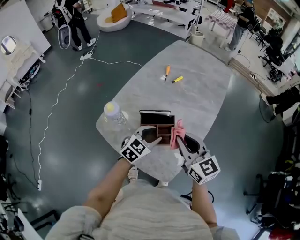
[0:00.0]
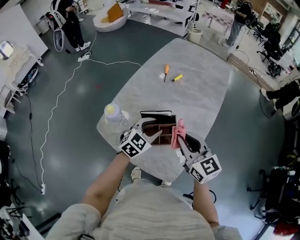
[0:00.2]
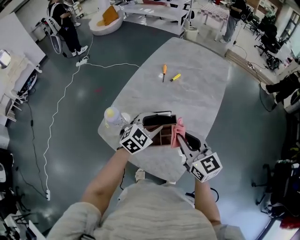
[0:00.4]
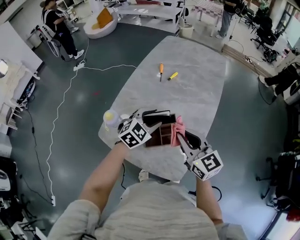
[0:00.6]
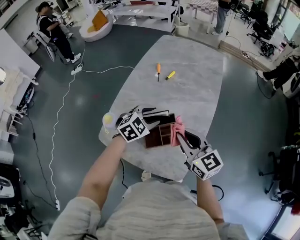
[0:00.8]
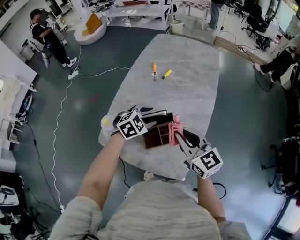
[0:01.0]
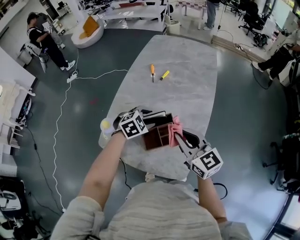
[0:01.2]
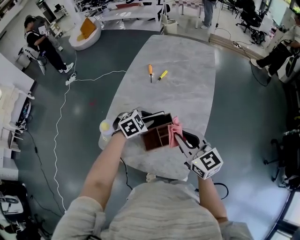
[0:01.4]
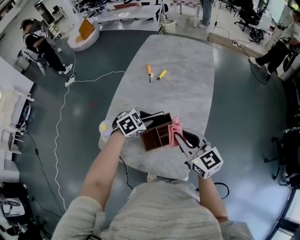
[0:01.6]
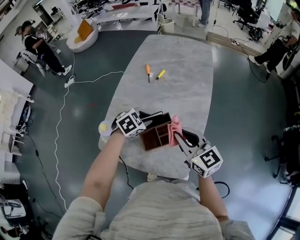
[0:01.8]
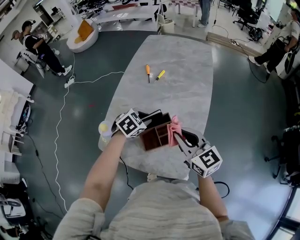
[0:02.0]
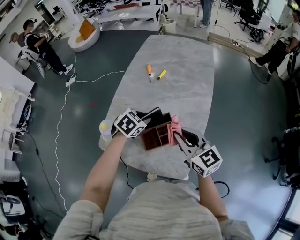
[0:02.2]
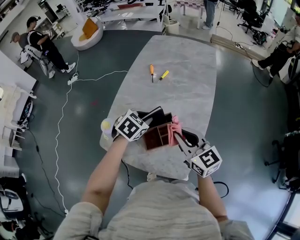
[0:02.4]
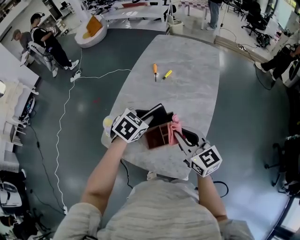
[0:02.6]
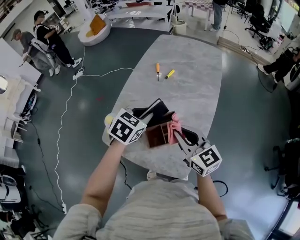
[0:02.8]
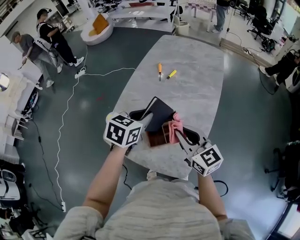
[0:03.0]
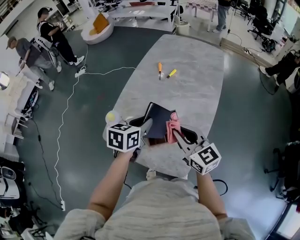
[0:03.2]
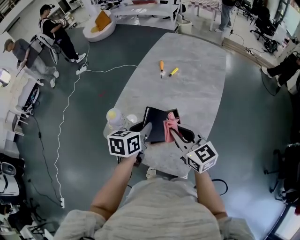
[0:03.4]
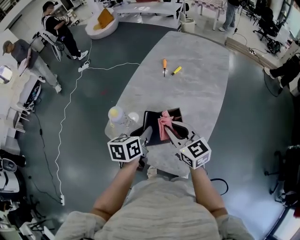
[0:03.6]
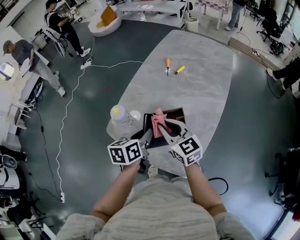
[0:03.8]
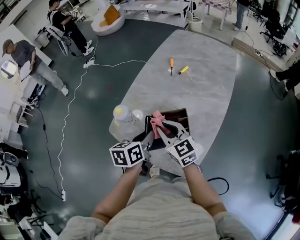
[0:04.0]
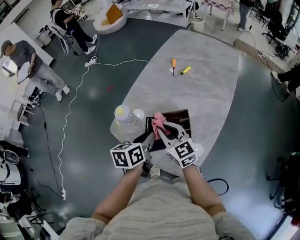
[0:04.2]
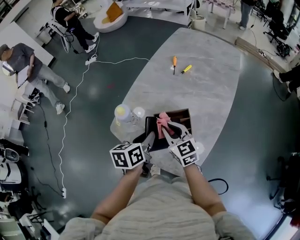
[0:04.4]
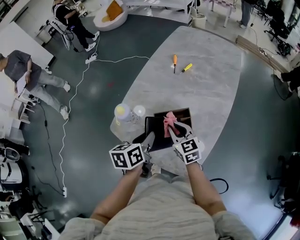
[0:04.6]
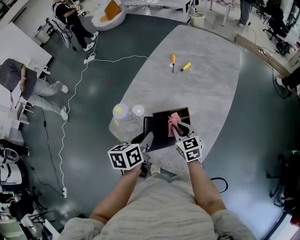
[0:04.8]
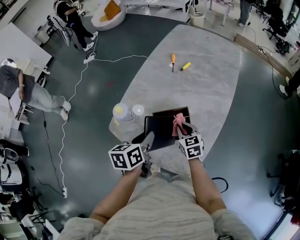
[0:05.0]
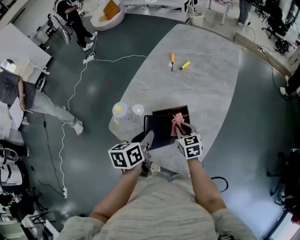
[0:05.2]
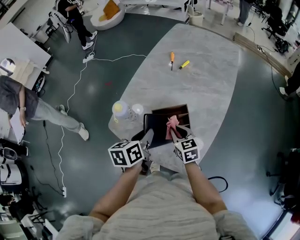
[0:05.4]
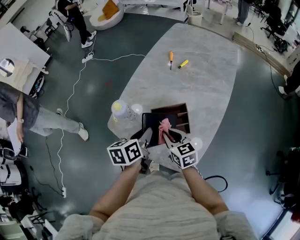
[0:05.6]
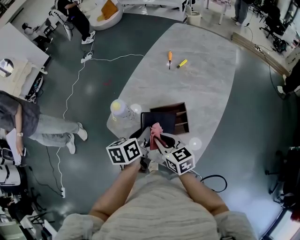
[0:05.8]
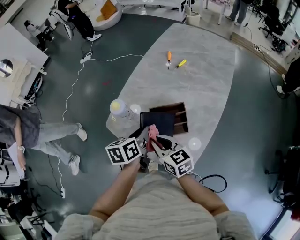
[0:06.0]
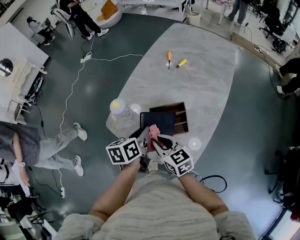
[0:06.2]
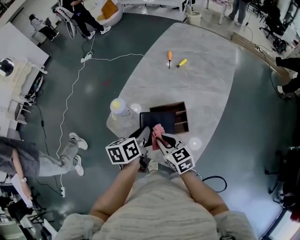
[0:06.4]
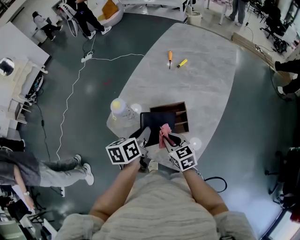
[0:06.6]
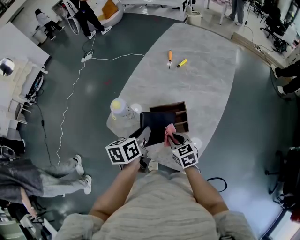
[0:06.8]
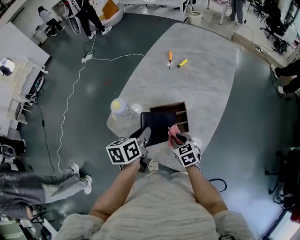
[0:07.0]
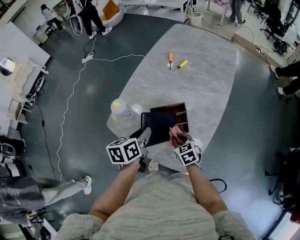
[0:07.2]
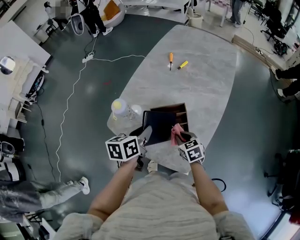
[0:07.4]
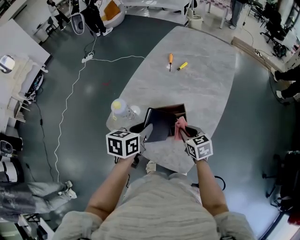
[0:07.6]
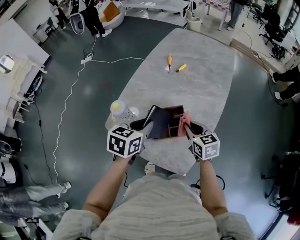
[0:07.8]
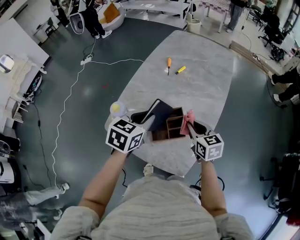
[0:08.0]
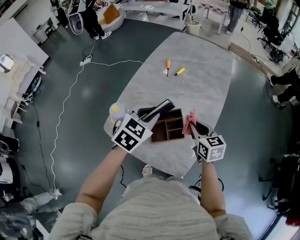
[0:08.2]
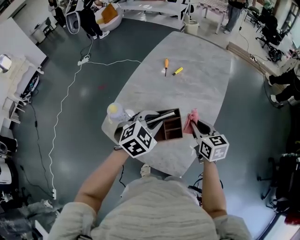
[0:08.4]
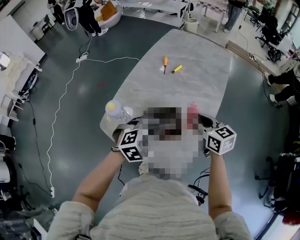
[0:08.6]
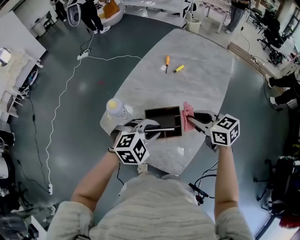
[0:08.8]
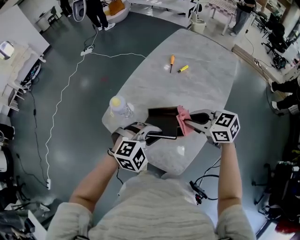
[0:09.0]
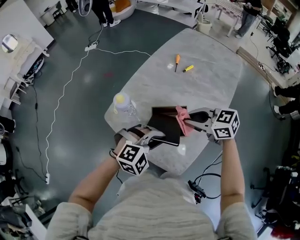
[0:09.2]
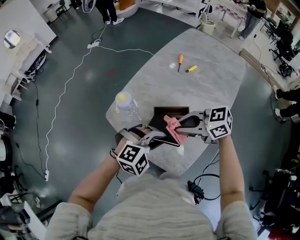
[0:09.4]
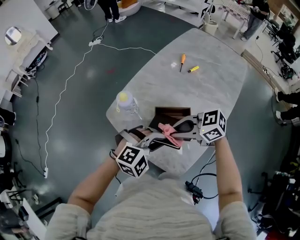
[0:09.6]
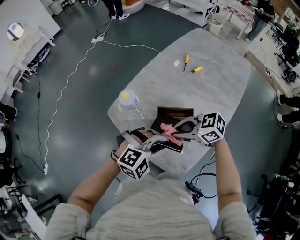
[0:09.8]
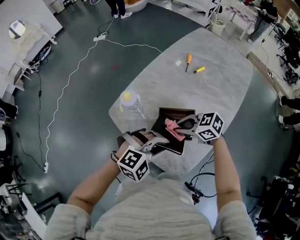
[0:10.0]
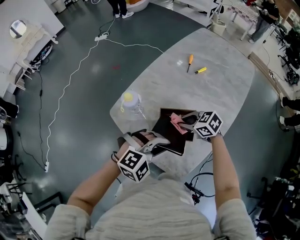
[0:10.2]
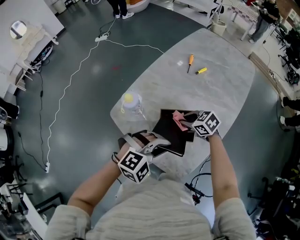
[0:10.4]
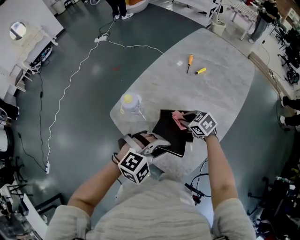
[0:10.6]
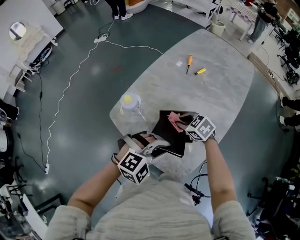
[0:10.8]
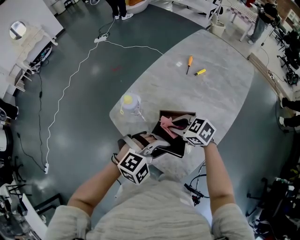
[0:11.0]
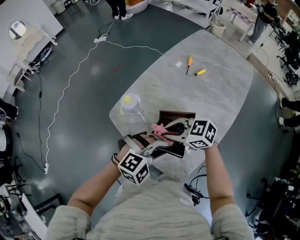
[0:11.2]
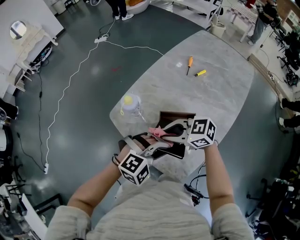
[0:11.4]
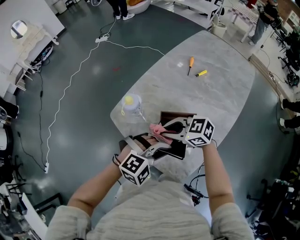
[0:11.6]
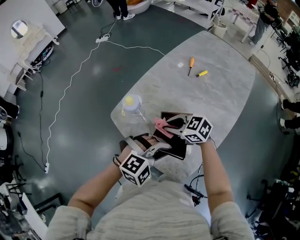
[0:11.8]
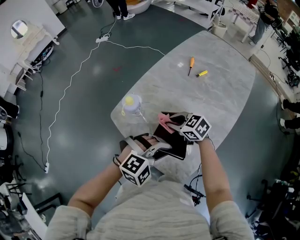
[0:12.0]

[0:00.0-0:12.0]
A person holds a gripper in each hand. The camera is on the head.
0.0 to 1.6 s: The left gripper moves forward, roughly 10 cm, rotates approximately 40 degrees, and closes up.
1.6 to 3.0 s: The left gripper shifts about 15 cm upward, and changes its angle by about 40 degrees.
3.0 to 4.4 s: The right gripper travels to the left and downward by roughly 15 cm. The left gripper heads downward, backward and to the left, covering approximately 10 cm, and changes its angle by some 40 degrees.
4.4 to 6.0 s: The right gripper moves backward, some 10 cm, and moves about 5 cm to the right and comes back.
6.0 to 7.6 s: The right gripper moves to the right and downward, about 15 cm, and turns by about 20 degrees.
7.6 to 9.0 s: The right gripper is displaced upward by approximately 15 cm, and turns by approximately 30 degrees. Meanwhile the left gripper moves to the right and backward, approximately 10 cm, and twists about 80 degrees clockwise, seen from behind.
9.0 to 10.4 s: The right gripper goes roughly 15 cm downward.
10.4 to 12.0 s: The right gripper goes upward and returns, approximately 10 cm each way.

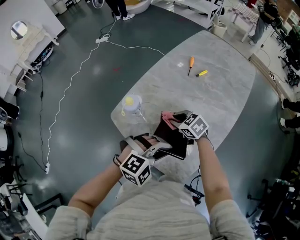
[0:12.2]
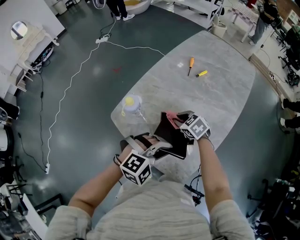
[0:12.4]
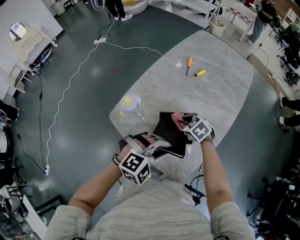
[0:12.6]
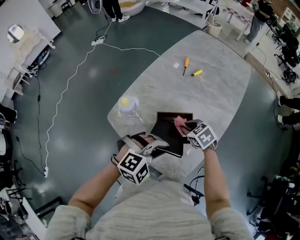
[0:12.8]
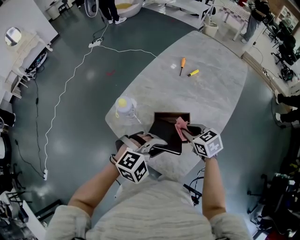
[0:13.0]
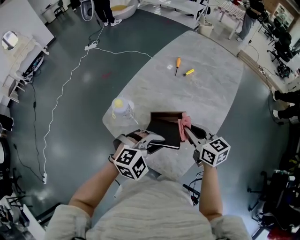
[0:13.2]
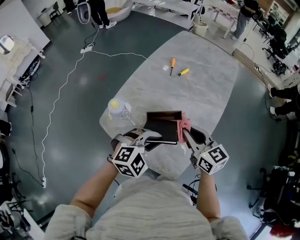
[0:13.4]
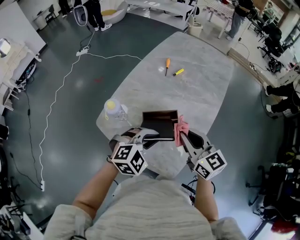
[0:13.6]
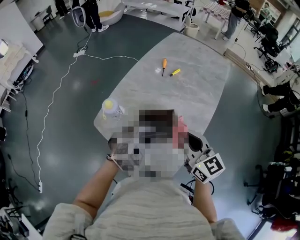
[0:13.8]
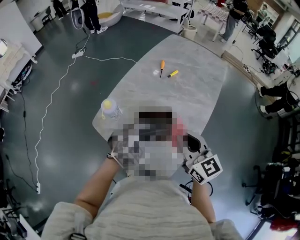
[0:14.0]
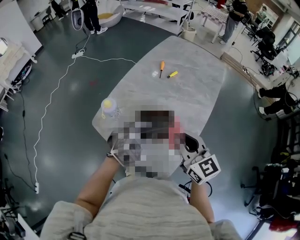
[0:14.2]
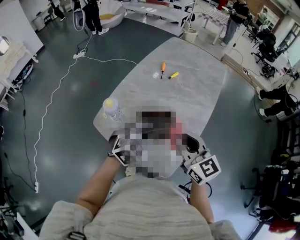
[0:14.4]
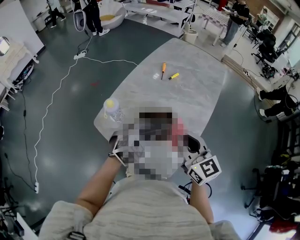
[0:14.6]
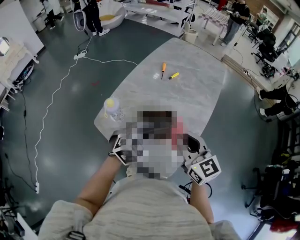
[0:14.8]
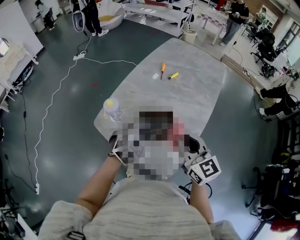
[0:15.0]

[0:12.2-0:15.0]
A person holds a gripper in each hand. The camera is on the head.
12.2 to 13.6 s: The right gripper moves upward, roughly 15 cm, and tips its fingers upward by about 40 degrees.
13.6 to 15.0 s: The right gripper ends up approximately 5 cm from where it was.

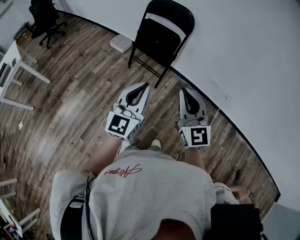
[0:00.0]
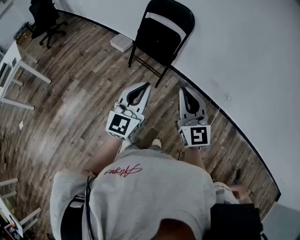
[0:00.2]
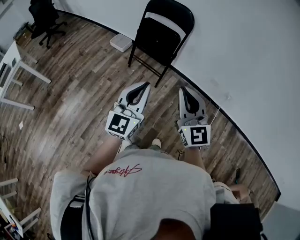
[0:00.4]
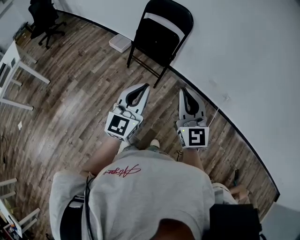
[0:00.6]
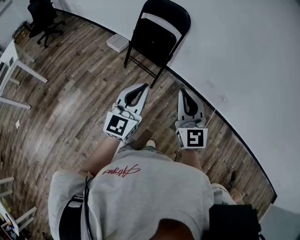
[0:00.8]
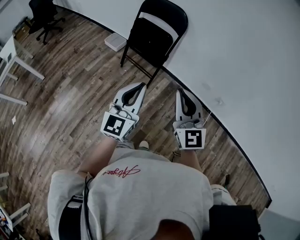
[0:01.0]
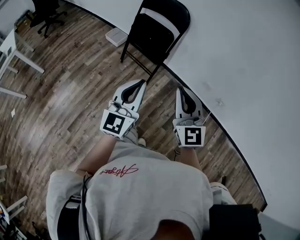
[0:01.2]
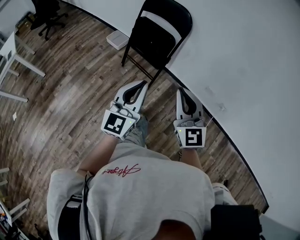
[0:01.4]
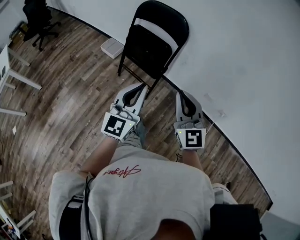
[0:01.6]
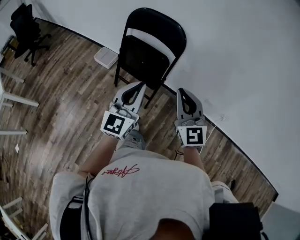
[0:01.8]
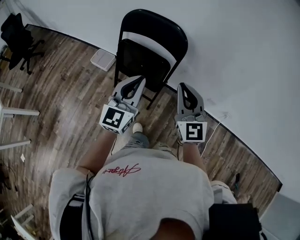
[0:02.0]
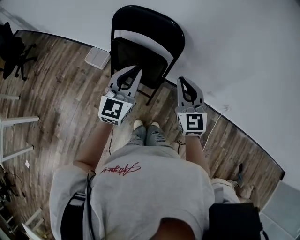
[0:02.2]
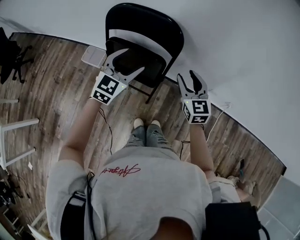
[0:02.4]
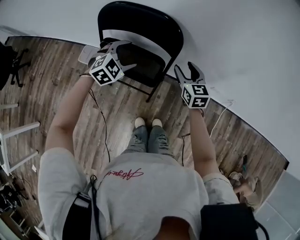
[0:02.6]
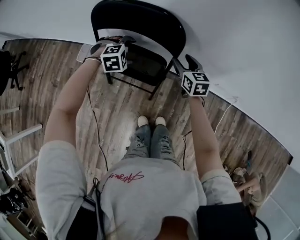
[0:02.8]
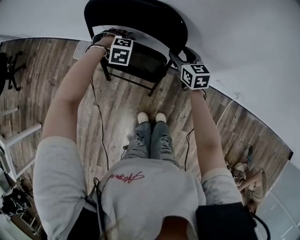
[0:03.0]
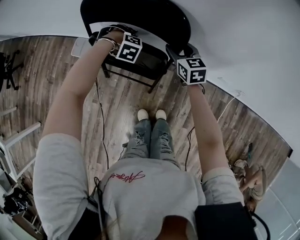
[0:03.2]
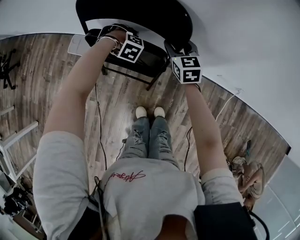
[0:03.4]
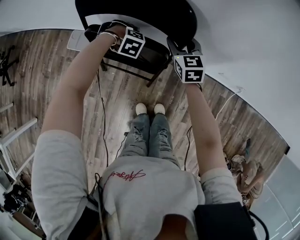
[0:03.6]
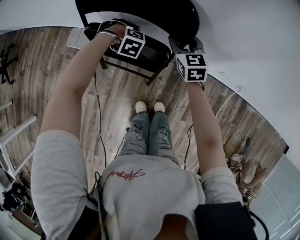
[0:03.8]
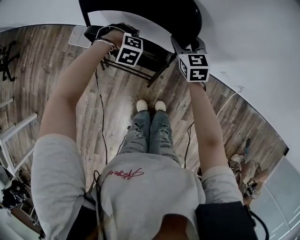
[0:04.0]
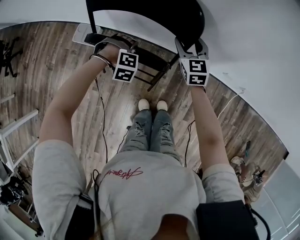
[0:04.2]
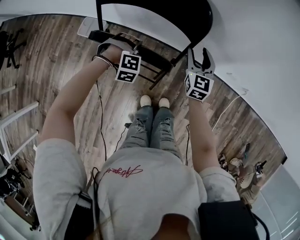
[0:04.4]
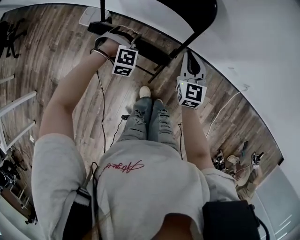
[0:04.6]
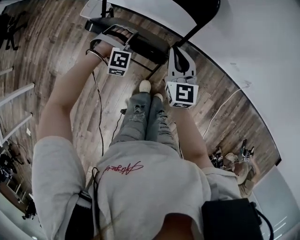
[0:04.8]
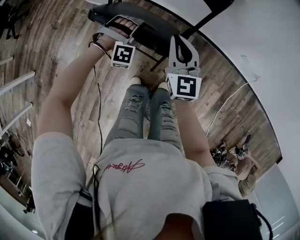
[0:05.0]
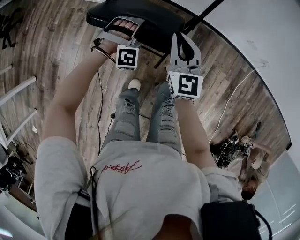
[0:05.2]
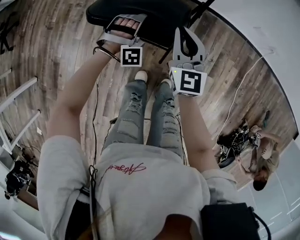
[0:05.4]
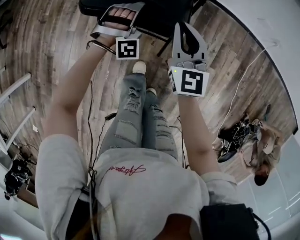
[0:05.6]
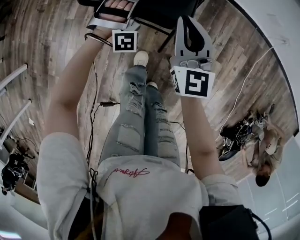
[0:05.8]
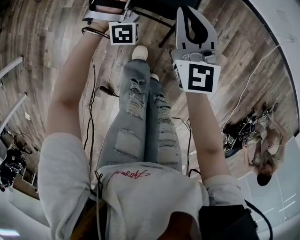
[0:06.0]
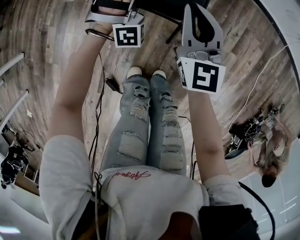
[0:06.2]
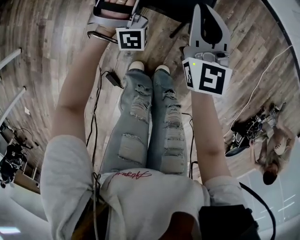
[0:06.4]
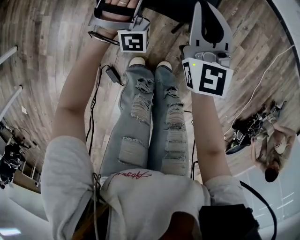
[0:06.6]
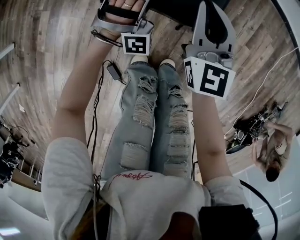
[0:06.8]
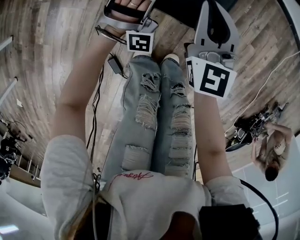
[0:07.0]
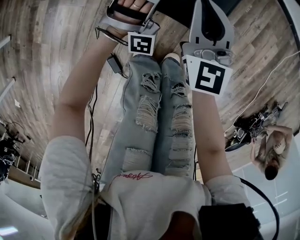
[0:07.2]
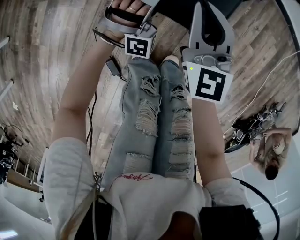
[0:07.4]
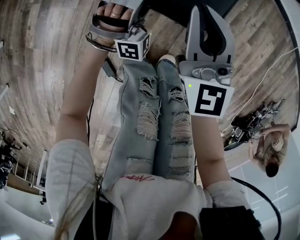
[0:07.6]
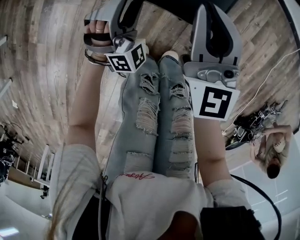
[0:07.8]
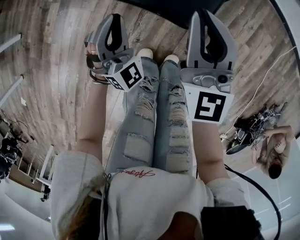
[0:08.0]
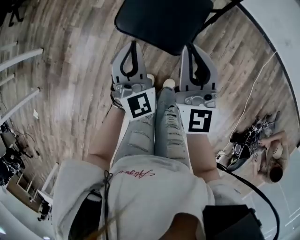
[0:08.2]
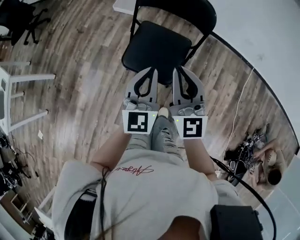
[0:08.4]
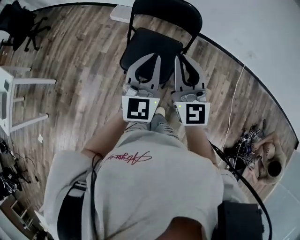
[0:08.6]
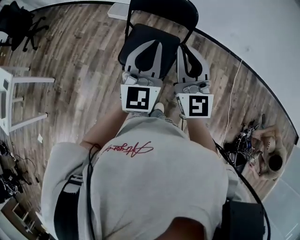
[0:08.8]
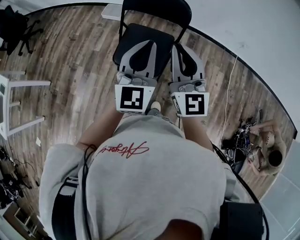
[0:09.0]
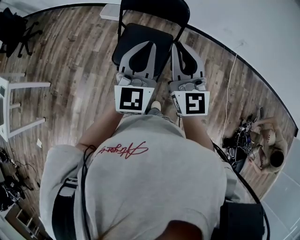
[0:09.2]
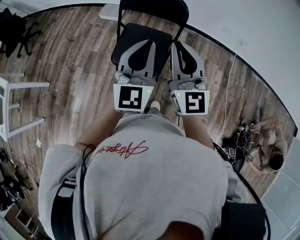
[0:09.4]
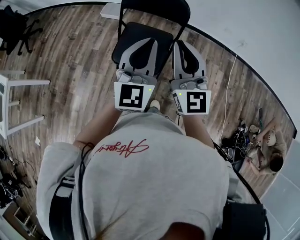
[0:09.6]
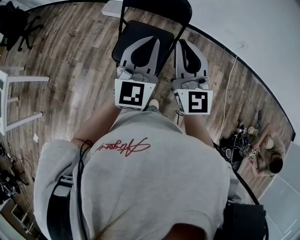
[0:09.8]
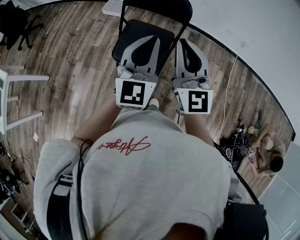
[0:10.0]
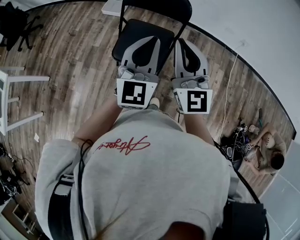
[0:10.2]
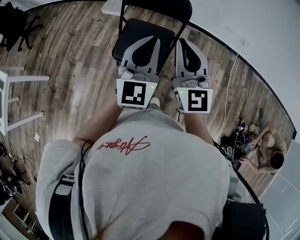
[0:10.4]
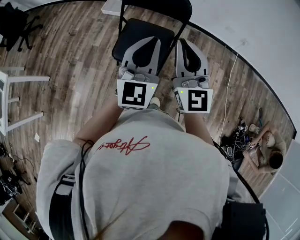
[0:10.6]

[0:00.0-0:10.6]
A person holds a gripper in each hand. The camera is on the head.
0.0 to 1.6 s: The two grippers go approximately 15 cm forward.
1.6 to 3.0 s: The pair of grippers is taken about 40 cm. The left gripper points its fingers approximately 90 degrees further downward, and opens up. The right gripper turns by roughly 40 degrees, and opens up.
3.0 to 4.6 s: The right gripper moves some 15 cm, turns by about 20 degrees, and closes, while the left gripper moves about 15 cm.
4.6 to 6.0 s: The left gripper goes approximately 30 cm backward, to the left and downward, and tilts its fingers approximately 40 degrees upward; the right gripper moves backward and to the left, some 35 cm.
6.0 to 7.6 s: The right gripper goes approximately 20 cm backward, to the left and downward. Meanwhile the left gripper heads backward, downward and to the left, covering roughly 25 cm.
7.6 to 9.0 s: The grippers both shift upward by some 50 cm. The left gripper twists roughly 70 degrees counterclockwise, seen from behind, and closes up.
9.0 to 10.6 s: The grippers move only a little.
